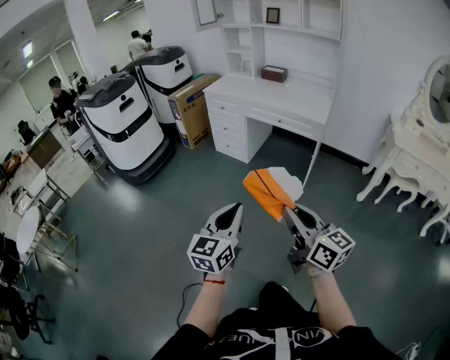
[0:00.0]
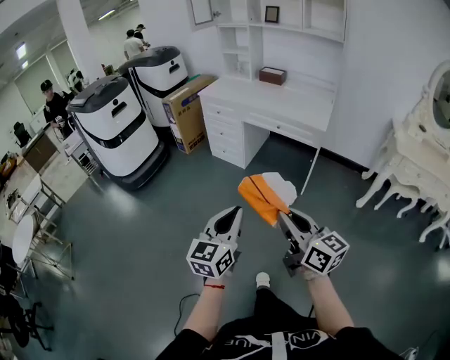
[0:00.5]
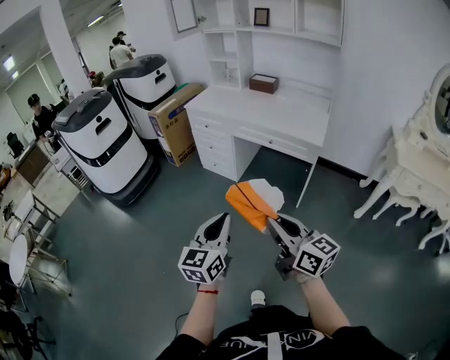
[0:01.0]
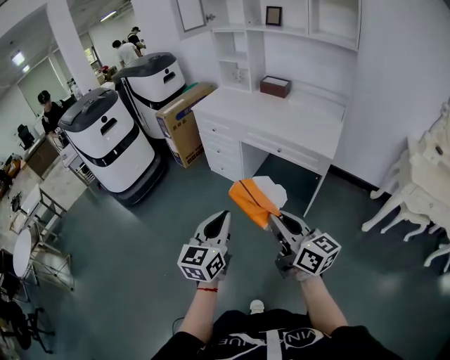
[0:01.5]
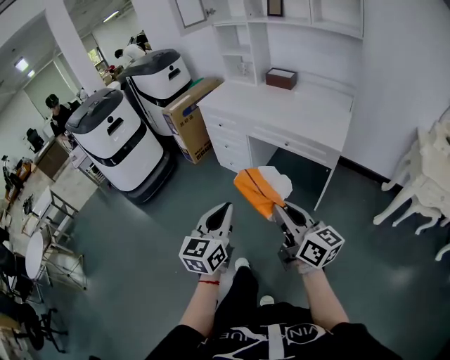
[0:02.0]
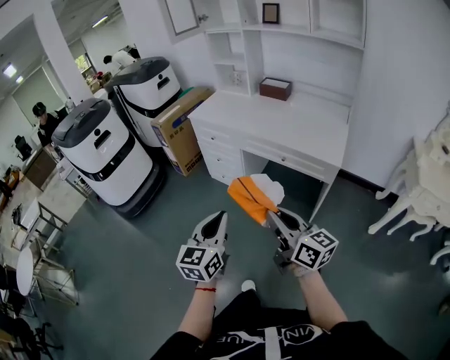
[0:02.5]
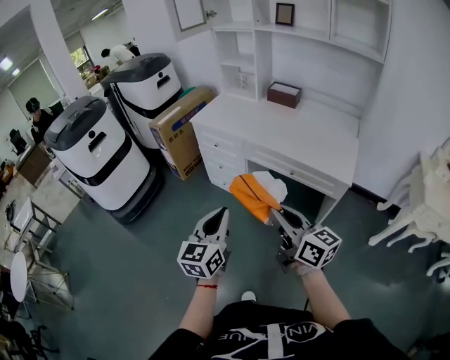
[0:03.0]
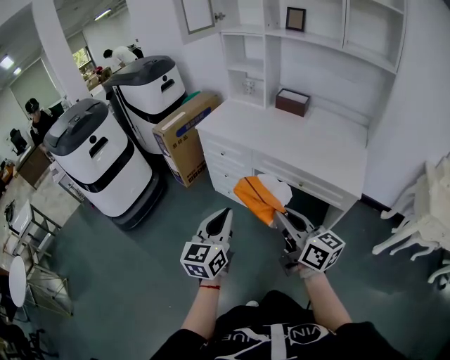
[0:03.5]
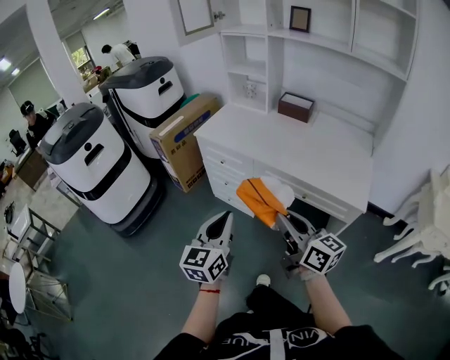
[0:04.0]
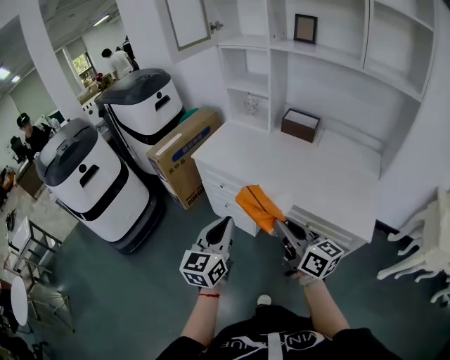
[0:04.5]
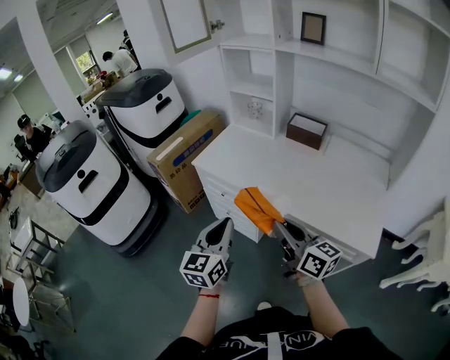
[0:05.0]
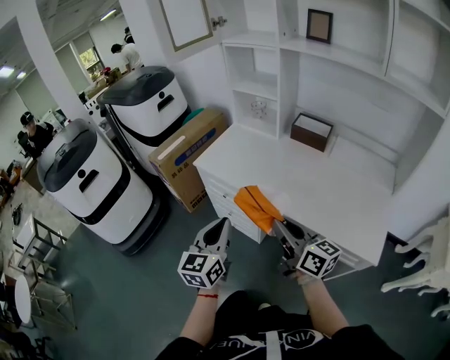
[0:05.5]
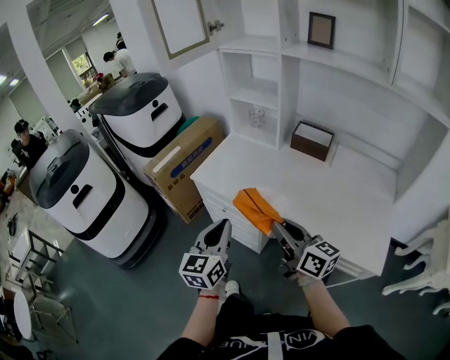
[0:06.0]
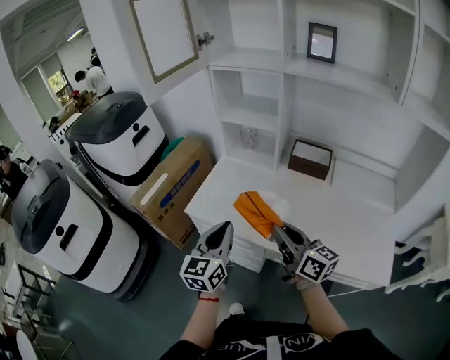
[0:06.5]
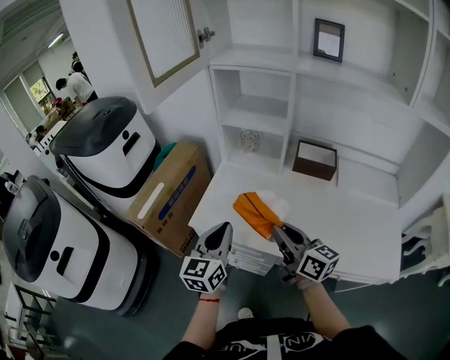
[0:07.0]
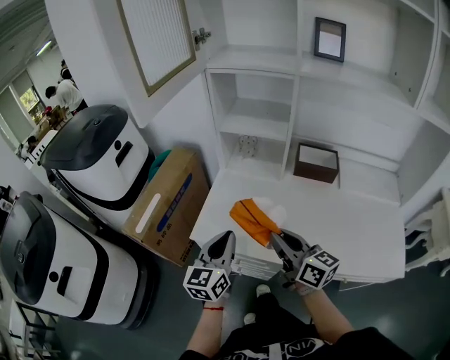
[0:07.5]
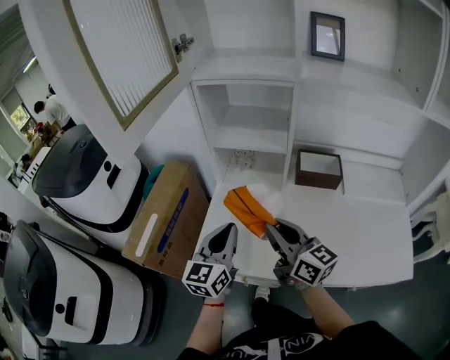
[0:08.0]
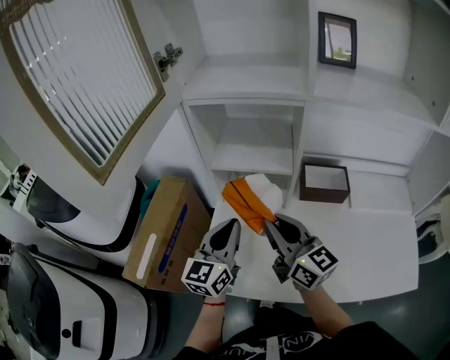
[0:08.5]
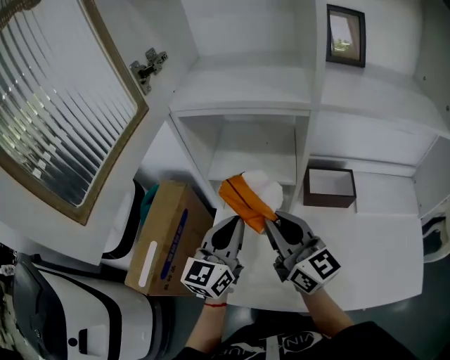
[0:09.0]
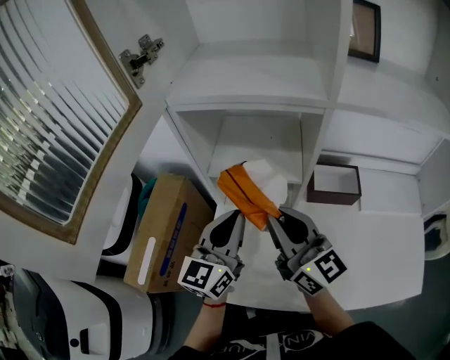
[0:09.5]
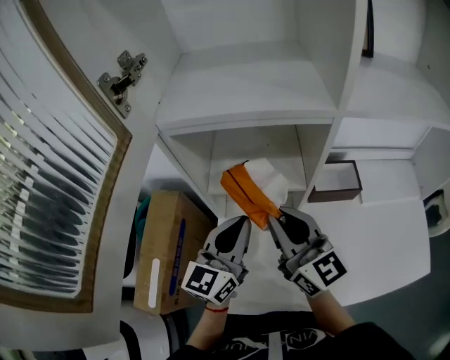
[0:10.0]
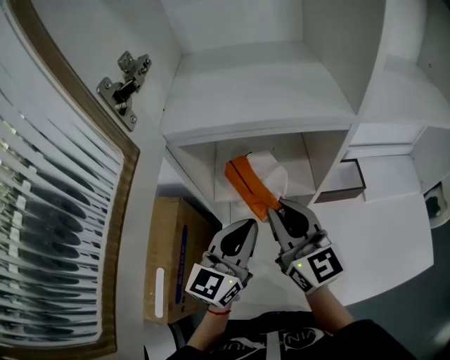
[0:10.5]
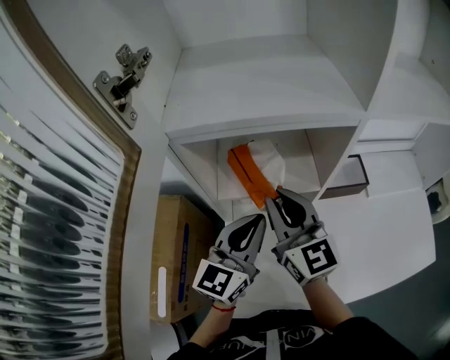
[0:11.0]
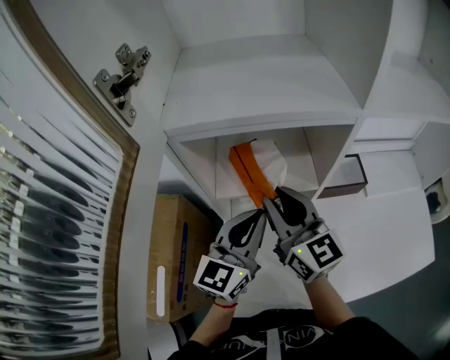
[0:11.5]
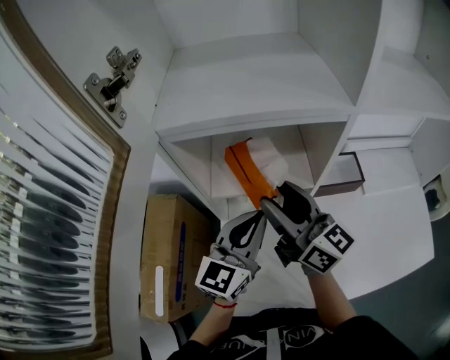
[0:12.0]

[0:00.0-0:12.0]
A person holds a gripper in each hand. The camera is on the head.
0:00.0 to 0:02.0: The grippers both shift forward by about 35 cm.
0:02.0 to 0:04.0: Both grippers move forward, some 35 cm.
0:04.0 to 0:06.0: The grippers both shift forward by some 30 cm.
0:06.0 to 0:08.0: Both grippers travel together forward, about 35 cm. The left gripper rotates about 20 degrees; the right gripper rotates about 20 degrees.
0:08.0 to 0:10.0: The two grippers go approximately 20 cm forward. The right gripper swivels some 20 degrees.
0:10.0 to 0:12.0: The right gripper shifts by some 5 cm, and opens its fingers.

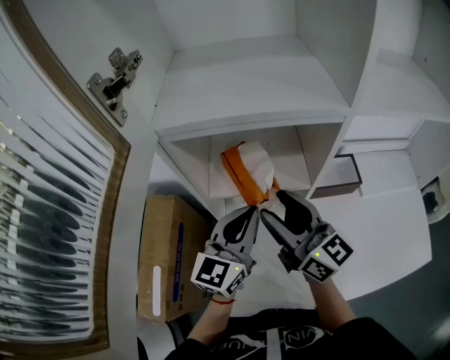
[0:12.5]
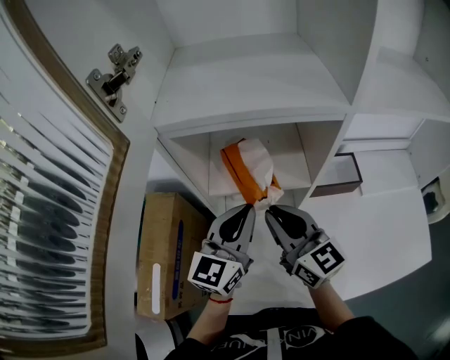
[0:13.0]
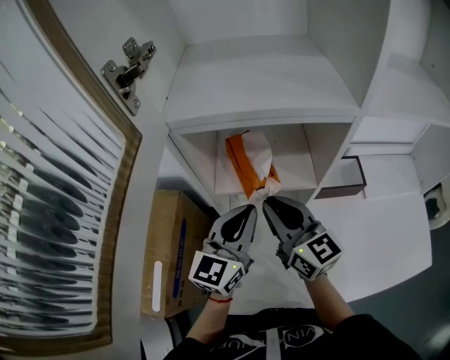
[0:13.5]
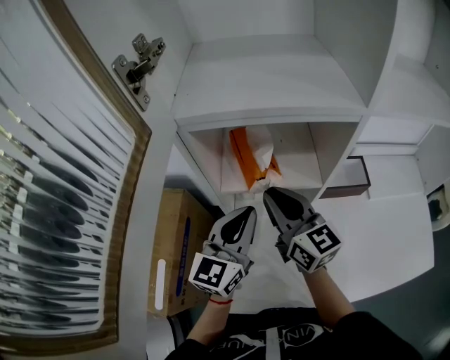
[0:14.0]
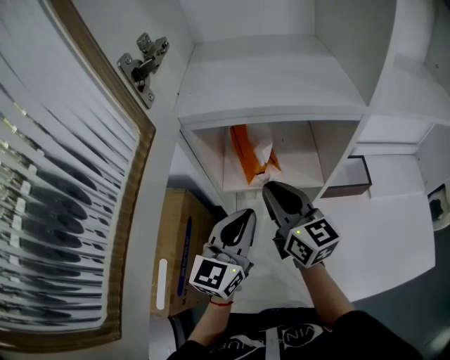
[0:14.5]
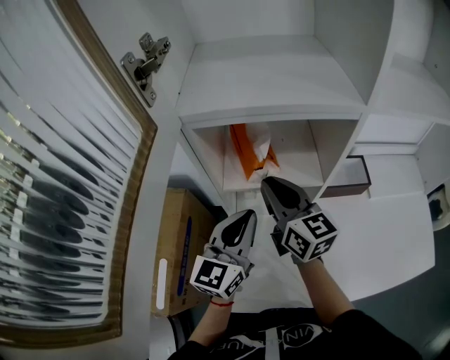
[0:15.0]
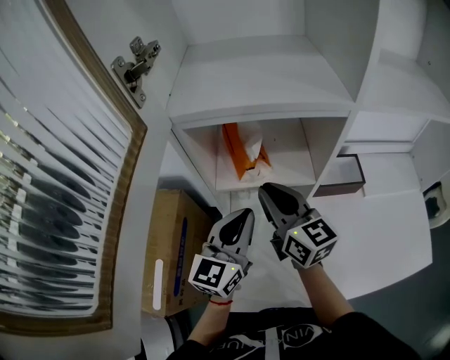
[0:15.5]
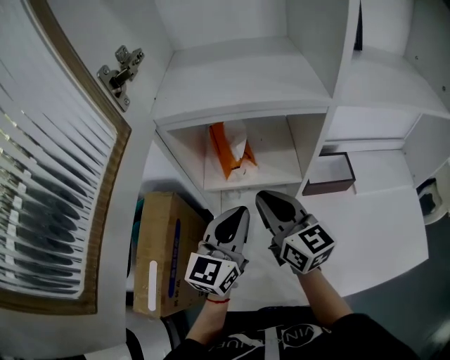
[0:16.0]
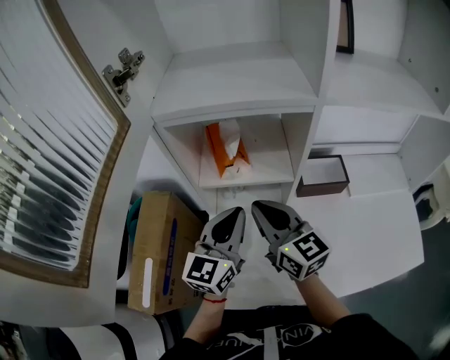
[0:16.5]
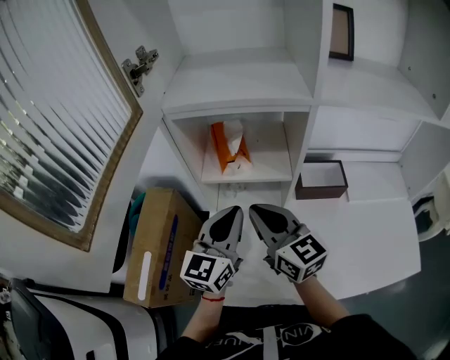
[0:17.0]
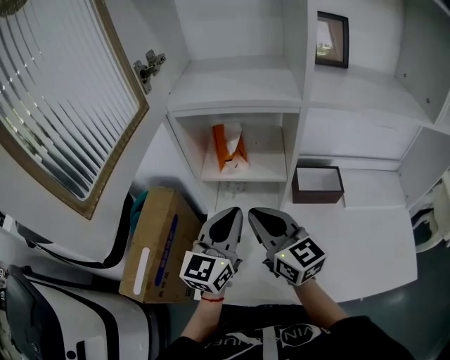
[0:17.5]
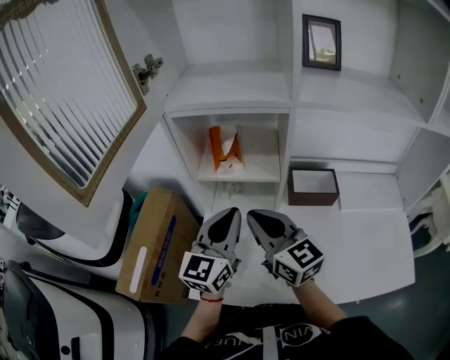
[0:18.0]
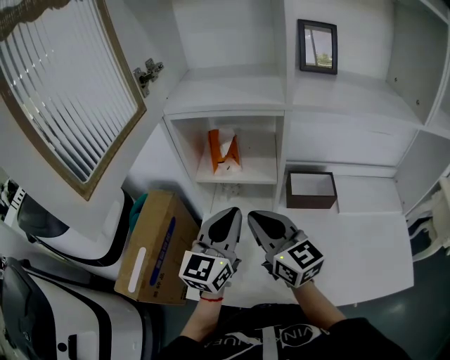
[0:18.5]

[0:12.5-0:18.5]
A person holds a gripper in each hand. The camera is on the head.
0:12.5 to 0:14.5: The right gripper shifts by some 5 cm, and closes its fingers.
0:14.5 to 0:16.5: The right gripper goes some 5 cm backward.
0:16.5 to 0:18.5: The grippers both shift backward by some 5 cm.

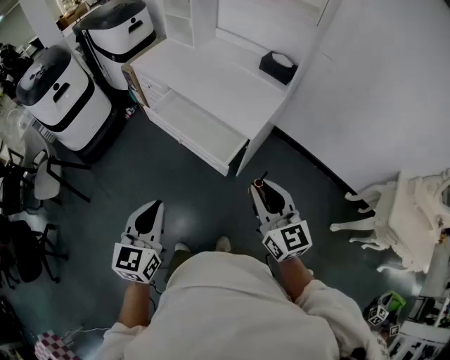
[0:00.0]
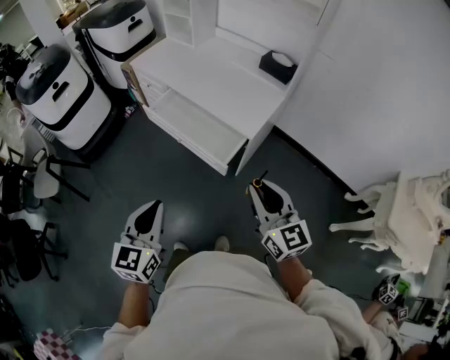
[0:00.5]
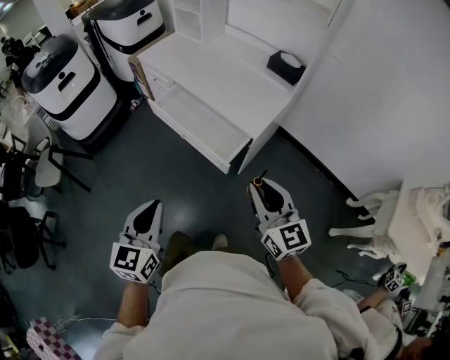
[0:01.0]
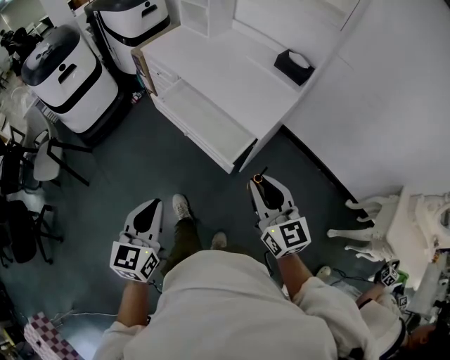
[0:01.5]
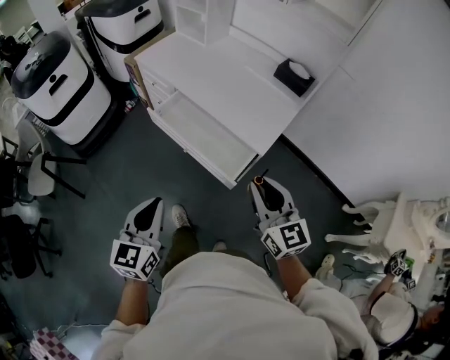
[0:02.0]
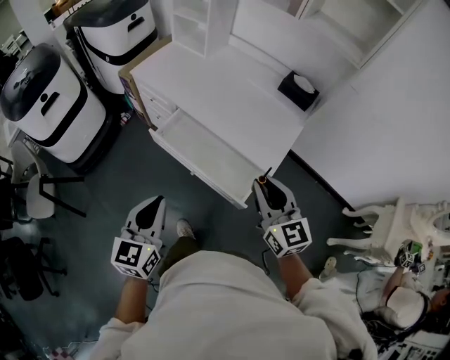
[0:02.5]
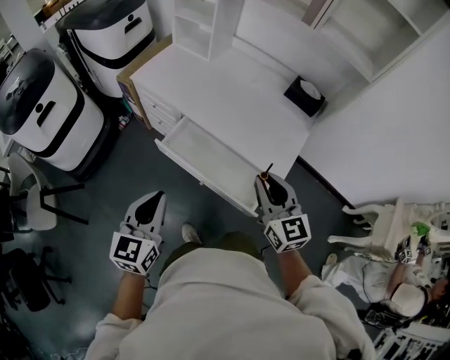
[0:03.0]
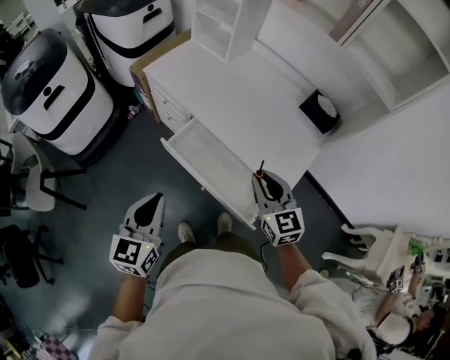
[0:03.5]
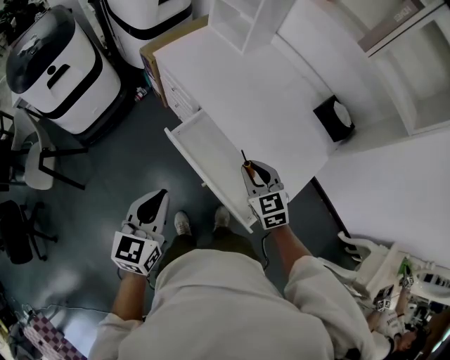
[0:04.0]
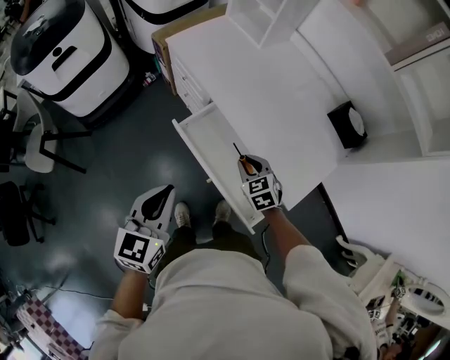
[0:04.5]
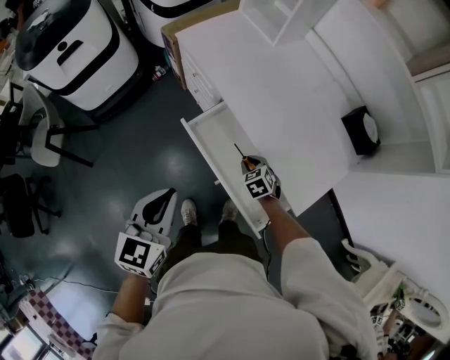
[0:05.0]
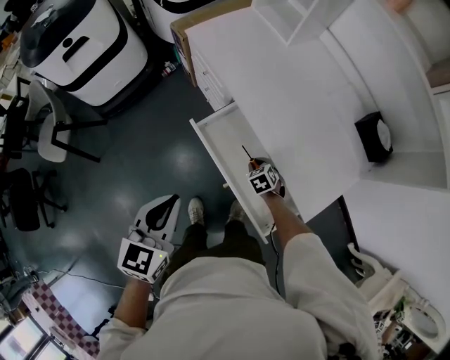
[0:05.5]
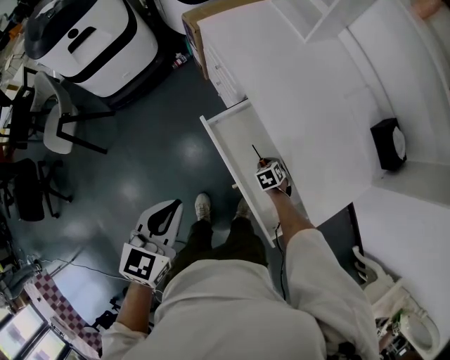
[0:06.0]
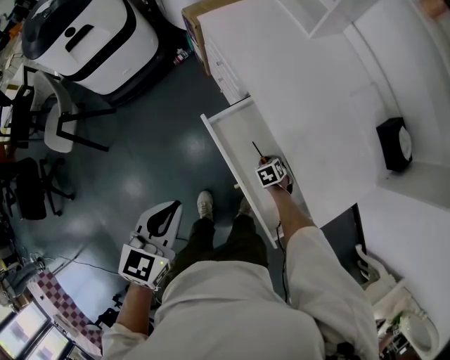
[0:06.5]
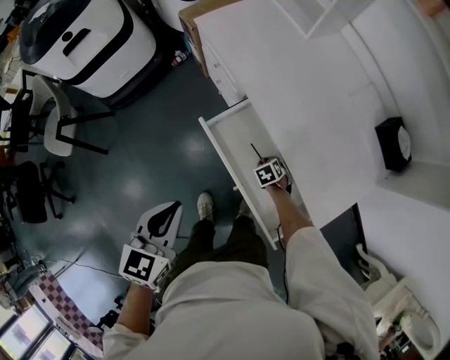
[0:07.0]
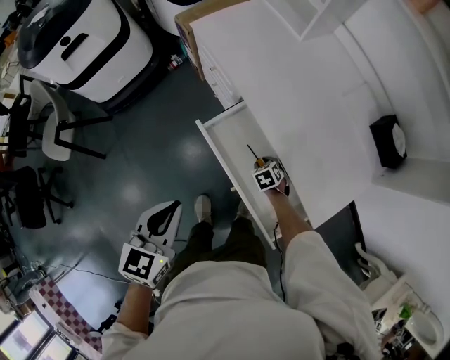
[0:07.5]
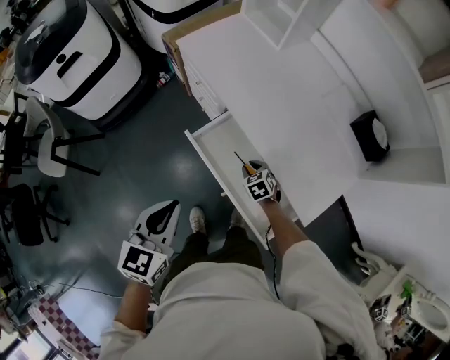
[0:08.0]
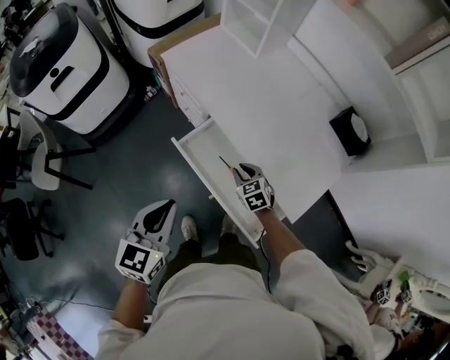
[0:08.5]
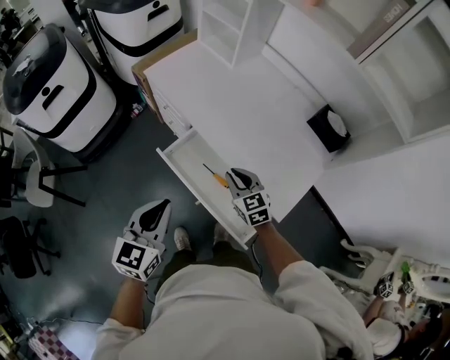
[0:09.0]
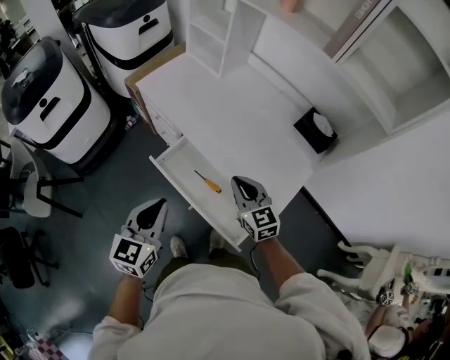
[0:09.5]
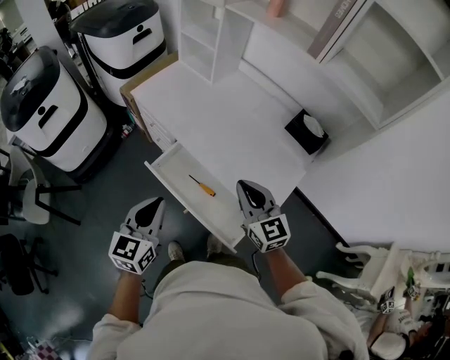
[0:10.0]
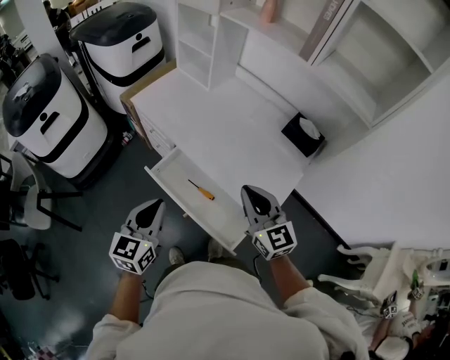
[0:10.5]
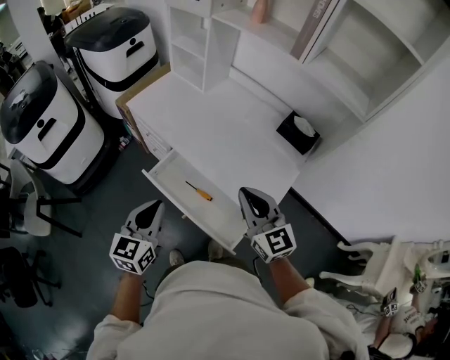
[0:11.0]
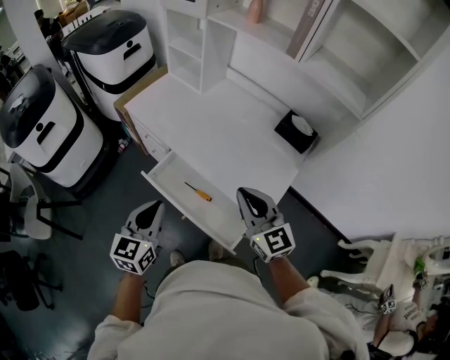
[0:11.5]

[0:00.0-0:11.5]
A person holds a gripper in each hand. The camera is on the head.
0:00.0 to 0:02.0: The two grippers go some 10 cm forward.
0:02.0 to 0:04.0: The left gripper heads forward, covering about 25 cm, while the right gripper goes about 35 cm forward and downward, and swivels roughly 30 degrees.
0:04.0 to 0:06.0: The right gripper goes roughly 35 cm downward, and tips its fingers downward by some 40 degrees. The left gripper is displaced downward by some 5 cm.
0:06.0 to 0:07.5: The grippers make only small movements.
0:07.5 to 0:09.5: The left gripper moves to the right and upward, about 10 cm. The right gripper shifts about 35 cm upward, angles its fingers upward, by roughly 50 degrees, and closes up.
0:09.5 to 0:11.5: The right gripper moves upward and backward, about 15 cm.
